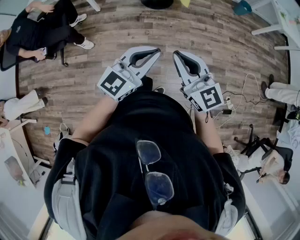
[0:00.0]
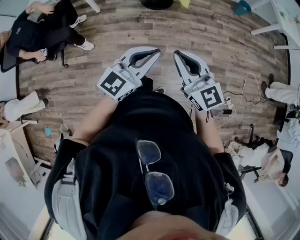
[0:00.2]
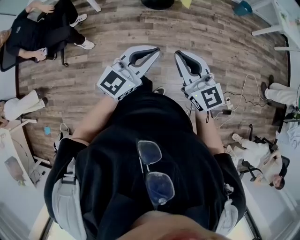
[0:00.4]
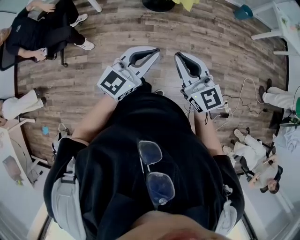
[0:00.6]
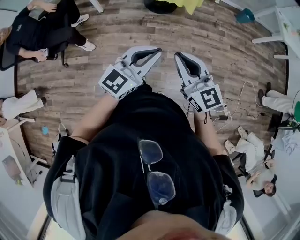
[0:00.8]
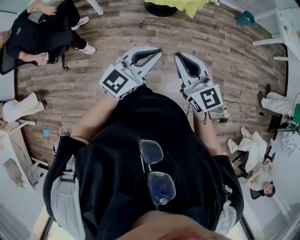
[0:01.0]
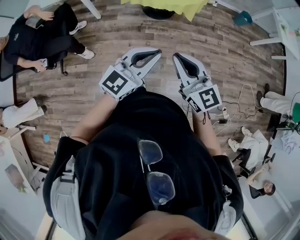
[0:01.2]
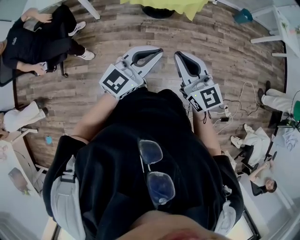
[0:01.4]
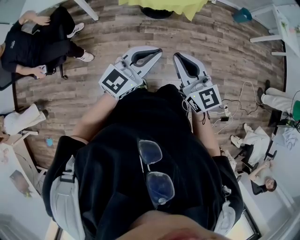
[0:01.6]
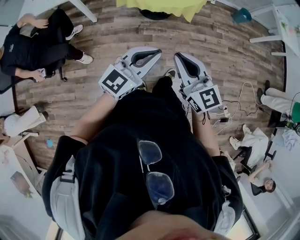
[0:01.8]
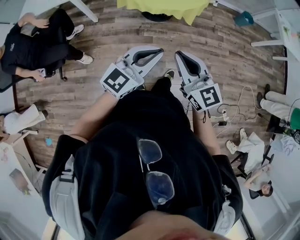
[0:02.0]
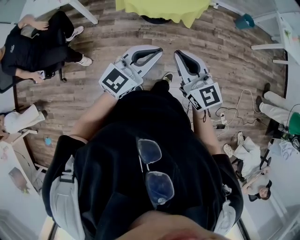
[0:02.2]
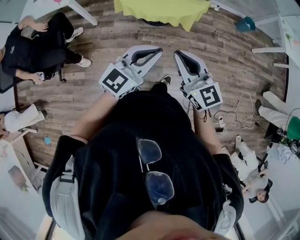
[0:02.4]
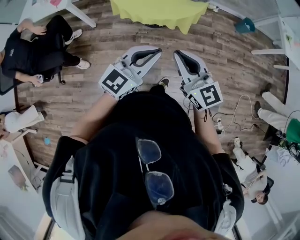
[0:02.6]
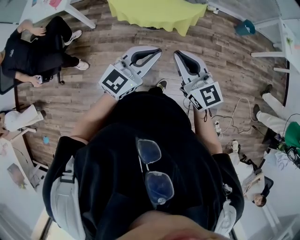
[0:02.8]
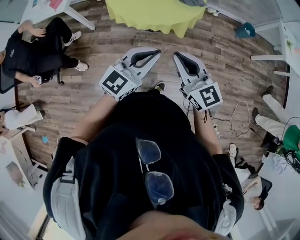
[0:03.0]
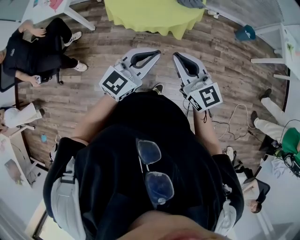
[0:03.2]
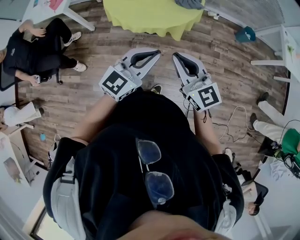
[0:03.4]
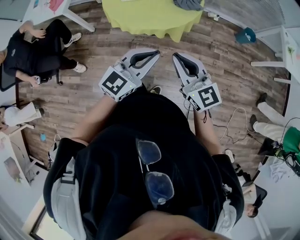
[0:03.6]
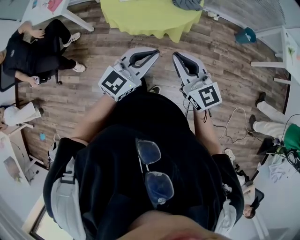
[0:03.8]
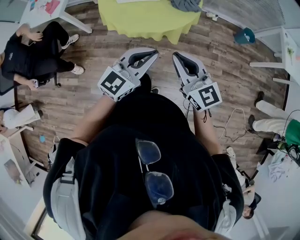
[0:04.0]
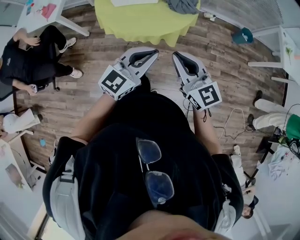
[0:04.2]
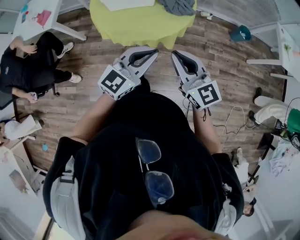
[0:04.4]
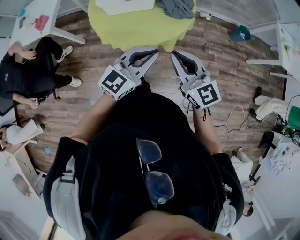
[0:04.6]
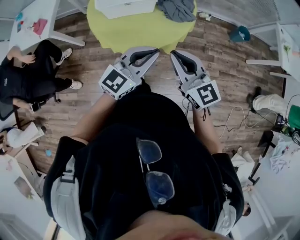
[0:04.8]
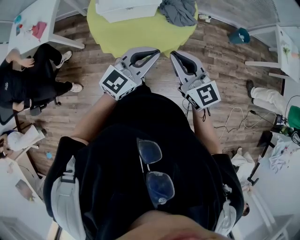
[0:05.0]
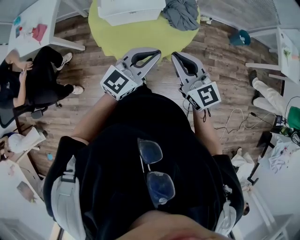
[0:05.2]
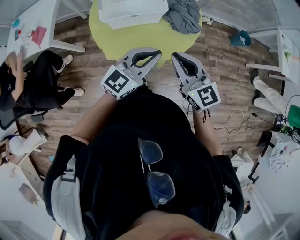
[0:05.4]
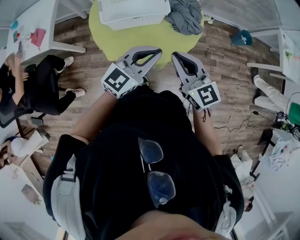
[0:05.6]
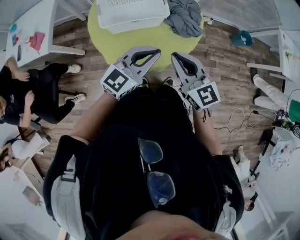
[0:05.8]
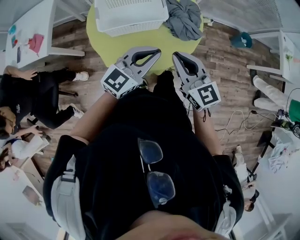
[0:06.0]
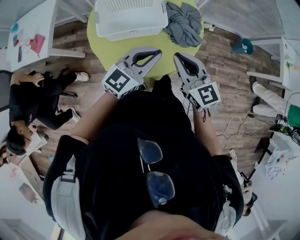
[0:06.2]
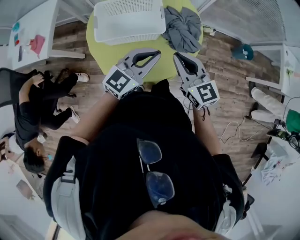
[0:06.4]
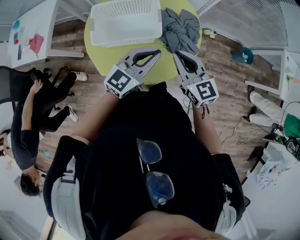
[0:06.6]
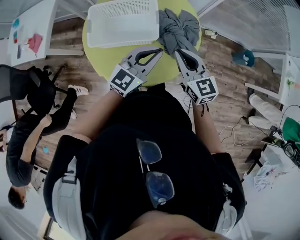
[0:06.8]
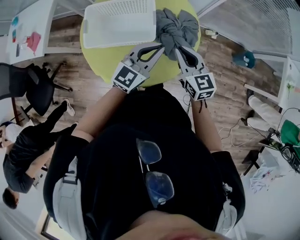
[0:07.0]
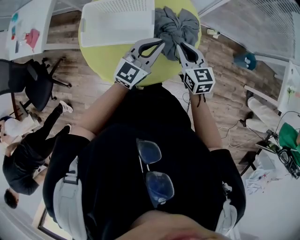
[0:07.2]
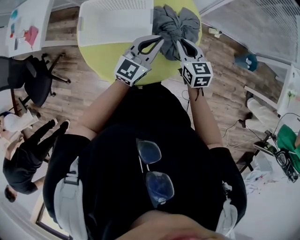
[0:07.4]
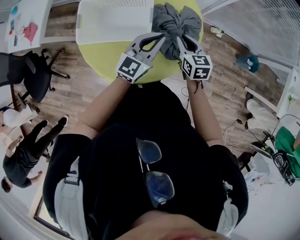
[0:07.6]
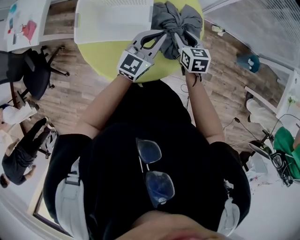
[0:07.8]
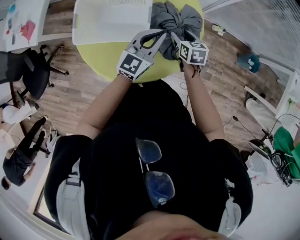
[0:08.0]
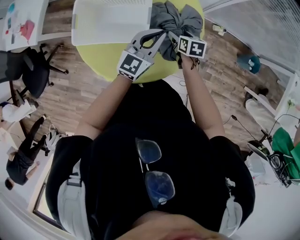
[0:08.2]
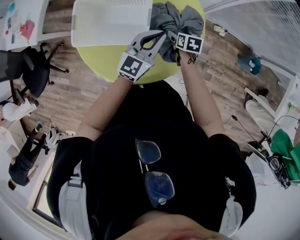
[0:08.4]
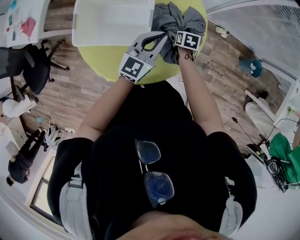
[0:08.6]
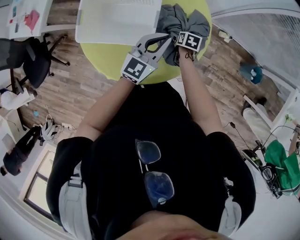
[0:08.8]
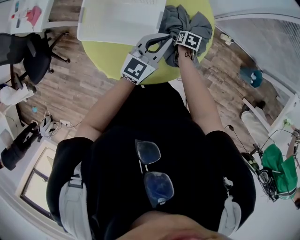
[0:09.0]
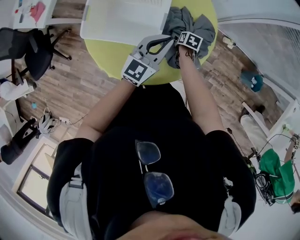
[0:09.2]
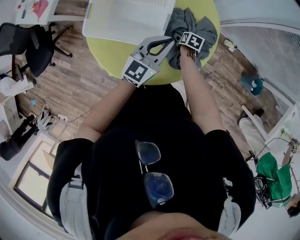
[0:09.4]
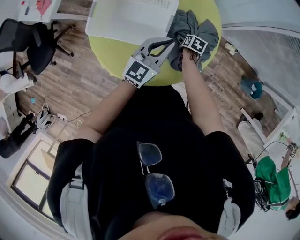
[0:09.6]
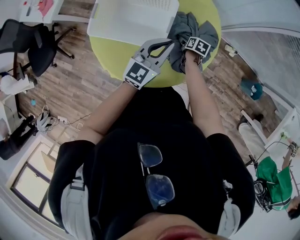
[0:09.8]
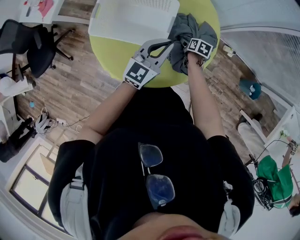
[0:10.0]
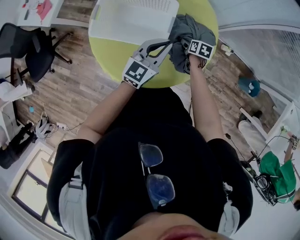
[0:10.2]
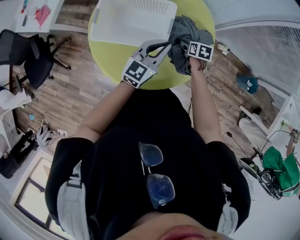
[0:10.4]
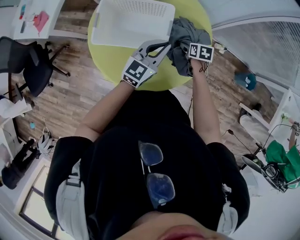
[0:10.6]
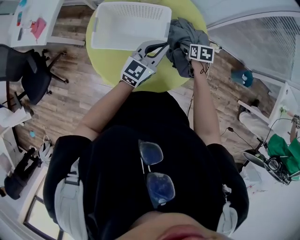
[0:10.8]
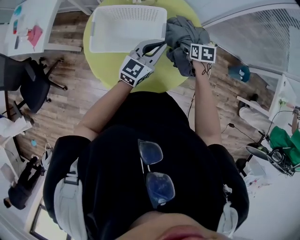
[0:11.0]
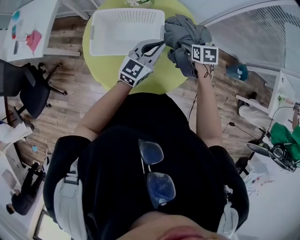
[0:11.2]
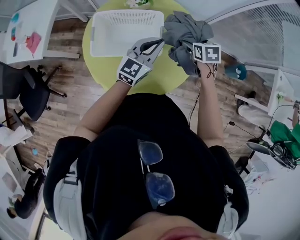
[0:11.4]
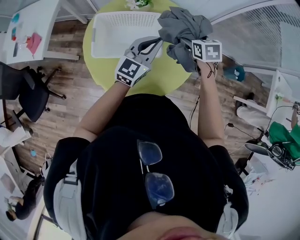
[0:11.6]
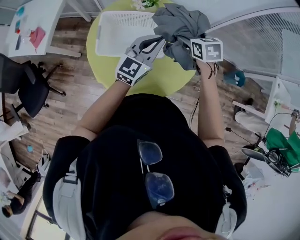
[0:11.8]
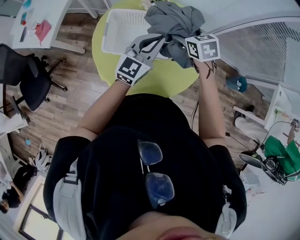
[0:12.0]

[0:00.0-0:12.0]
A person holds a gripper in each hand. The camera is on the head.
0:00.0 to 0:01.6: The two grippers go some 20 cm forward and to the left.
0:01.6 to 0:03.0: The grippers both shift forward and to the right by approximately 25 cm.
0:03.0 to 0:04.4: The two grippers go approximately 15 cm forward and to the right.
0:04.4 to 0:06.0: The right gripper heads forward and to the left, covering roughly 25 cm, while the left gripper heads forward, covering roughly 20 cm.
0:06.0 to 0:07.6: The right gripper travels forward, downward and to the right by some 35 cm, and rotates some 30 degrees. Meanwhile the left gripper is displaced forward and to the right by some 25 cm, and changes its angle by roughly 20 degrees.
0:07.6 to 0:09.0: The left gripper changes place by roughly 5 cm; the right gripper heads downward, covering about 25 cm, points its fingers some 30 degrees further downward, and opens its fingers.
0:09.0 to 0:10.4: The left gripper shifts by approximately 5 cm, while the right gripper shifts some 5 cm upward.
0:10.4 to 0:12.0: The right gripper travels upward and to the left by some 30 cm, and rotates approximately 30 degrees. The left gripper is displaced upward and to the left by about 15 cm.

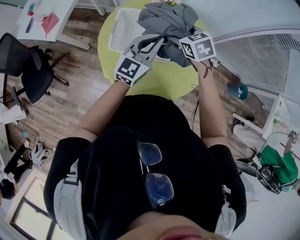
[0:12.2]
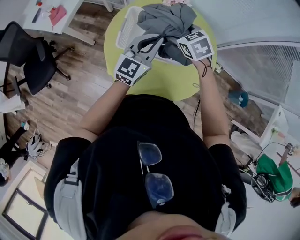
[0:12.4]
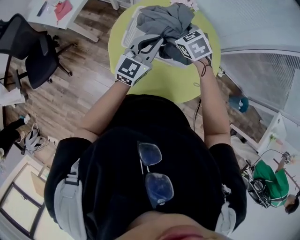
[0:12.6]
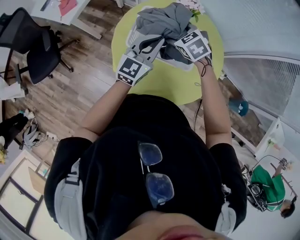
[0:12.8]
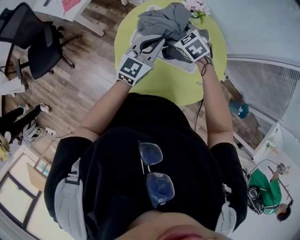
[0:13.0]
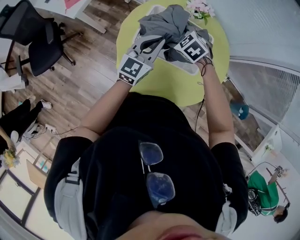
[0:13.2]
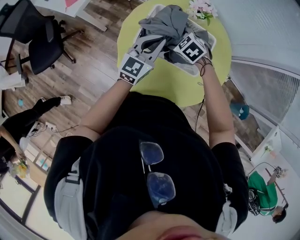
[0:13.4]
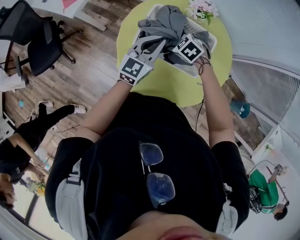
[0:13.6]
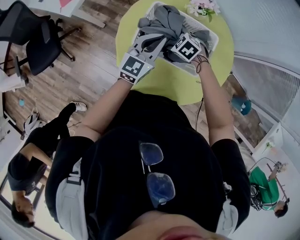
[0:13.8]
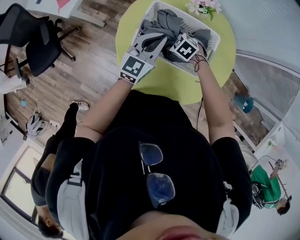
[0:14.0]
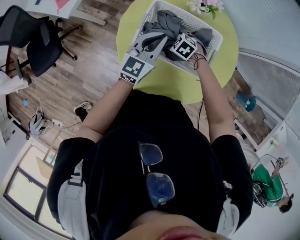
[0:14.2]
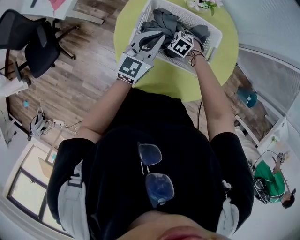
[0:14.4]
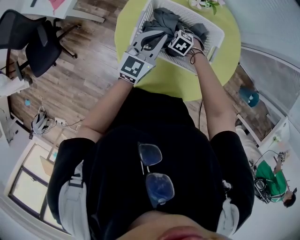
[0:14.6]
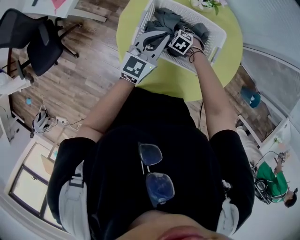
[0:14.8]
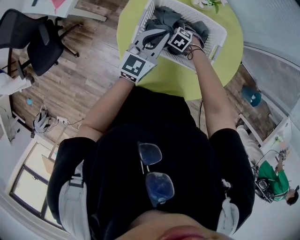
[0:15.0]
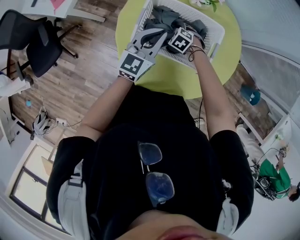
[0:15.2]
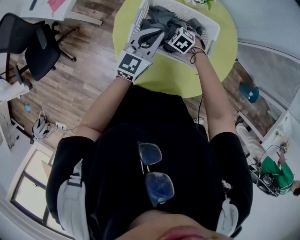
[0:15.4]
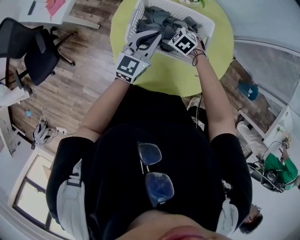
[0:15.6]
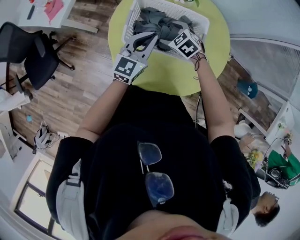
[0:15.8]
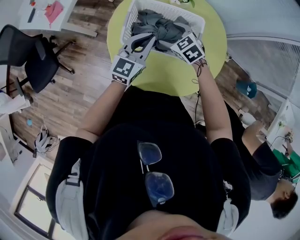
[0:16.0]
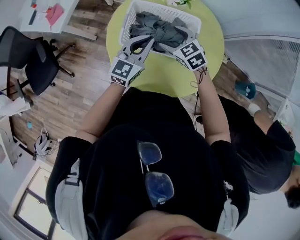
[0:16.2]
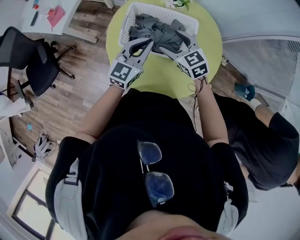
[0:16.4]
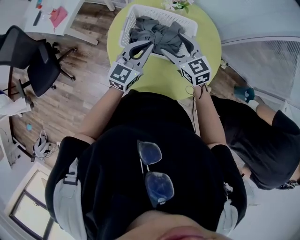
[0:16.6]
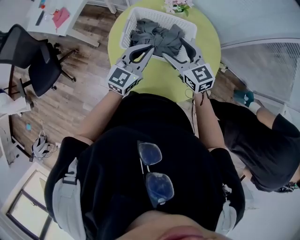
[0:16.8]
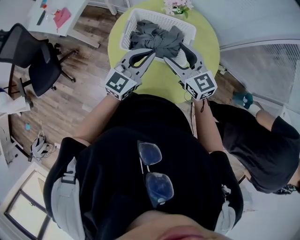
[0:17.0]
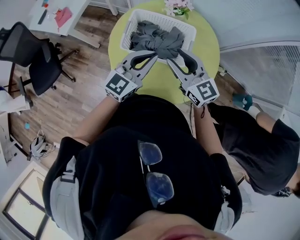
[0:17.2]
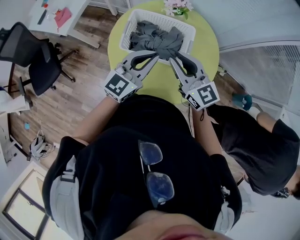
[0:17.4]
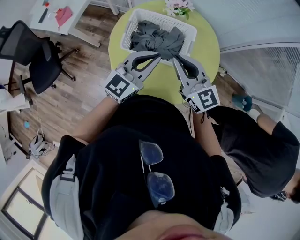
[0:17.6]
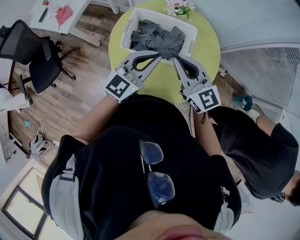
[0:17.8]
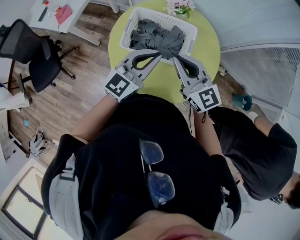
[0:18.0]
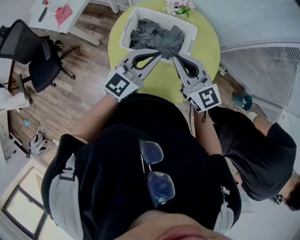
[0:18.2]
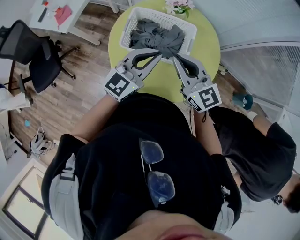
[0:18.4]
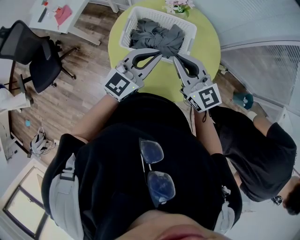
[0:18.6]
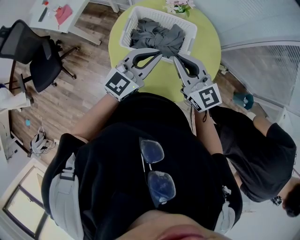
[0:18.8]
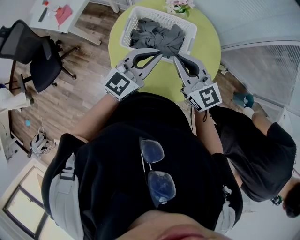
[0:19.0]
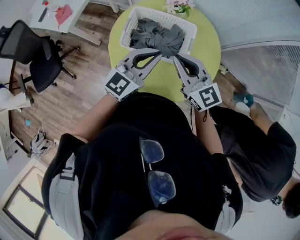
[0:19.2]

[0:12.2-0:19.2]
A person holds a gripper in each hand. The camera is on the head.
0:12.2 to 0:13.6: The left gripper goes about 15 cm to the left and downward. Meanwhile the right gripper shifts some 20 cm downward and to the left, and changes its angle by some 40 degrees.
0:13.6 to 0:15.0: The right gripper moves downward, some 15 cm.
0:15.0 to 0:16.4: The left gripper goes some 5 cm backward; the right gripper heads upward, covering approximately 25 cm, and tilts its fingers some 40 degrees upward.
0:16.4 to 0:17.8: The right gripper is displaced upward and backward by about 15 cm, changes its angle by some 30 degrees, and closes its fingers; the left gripper shifts some 10 cm upward and backward.
0:17.8 to 0:19.2: Both grippers stay put.

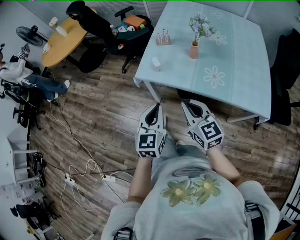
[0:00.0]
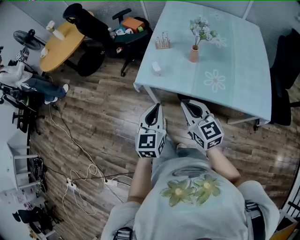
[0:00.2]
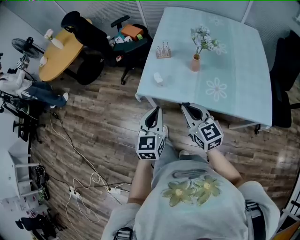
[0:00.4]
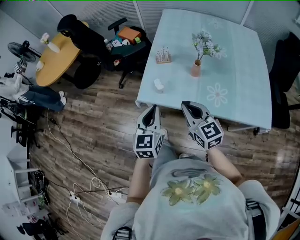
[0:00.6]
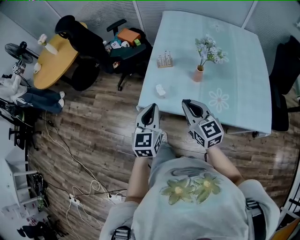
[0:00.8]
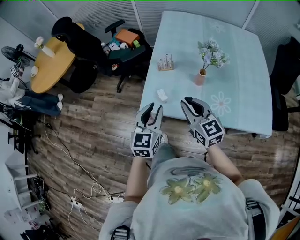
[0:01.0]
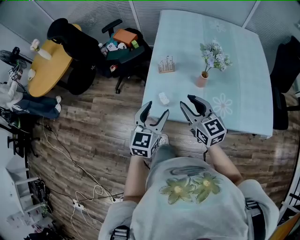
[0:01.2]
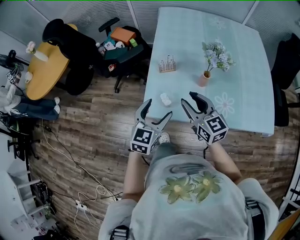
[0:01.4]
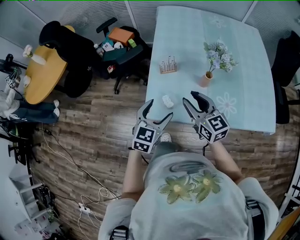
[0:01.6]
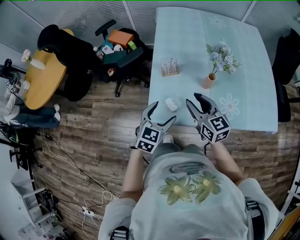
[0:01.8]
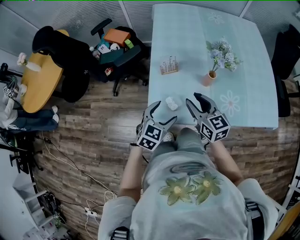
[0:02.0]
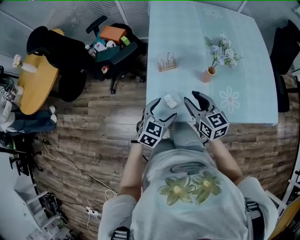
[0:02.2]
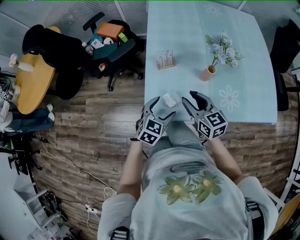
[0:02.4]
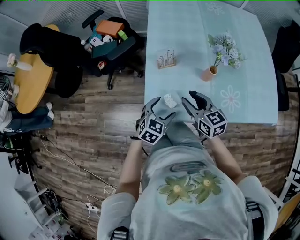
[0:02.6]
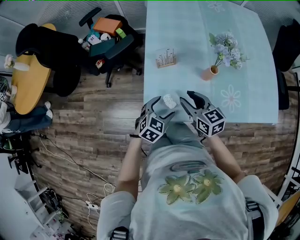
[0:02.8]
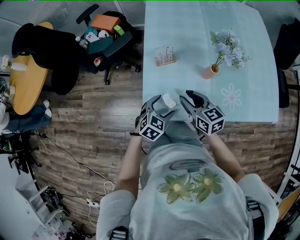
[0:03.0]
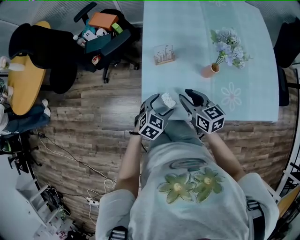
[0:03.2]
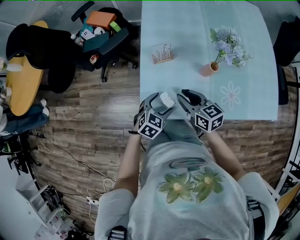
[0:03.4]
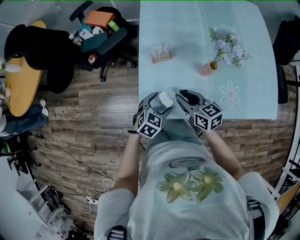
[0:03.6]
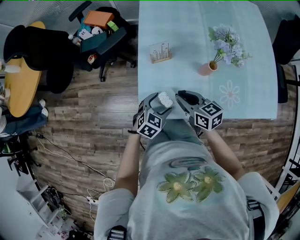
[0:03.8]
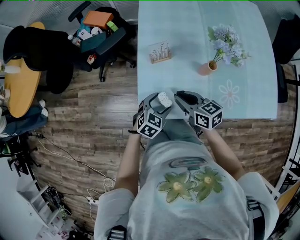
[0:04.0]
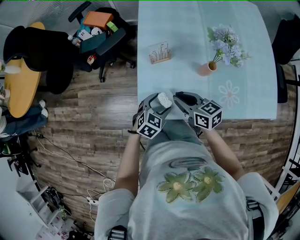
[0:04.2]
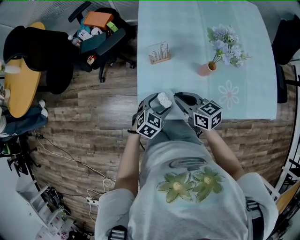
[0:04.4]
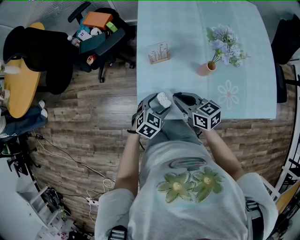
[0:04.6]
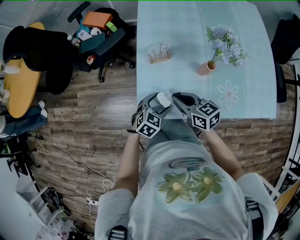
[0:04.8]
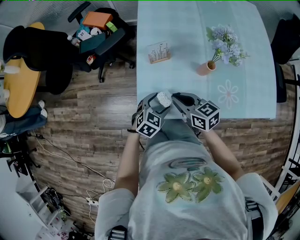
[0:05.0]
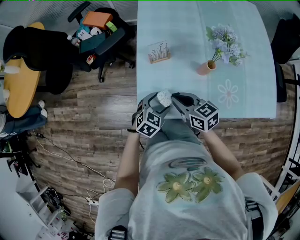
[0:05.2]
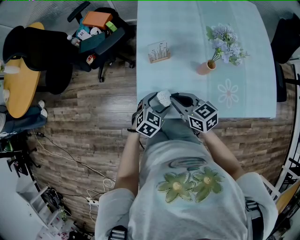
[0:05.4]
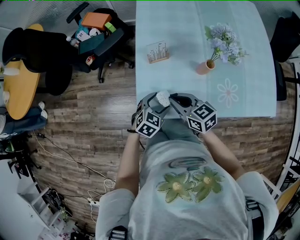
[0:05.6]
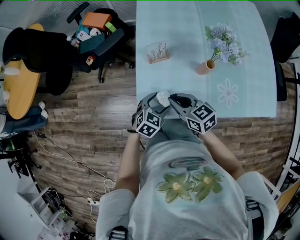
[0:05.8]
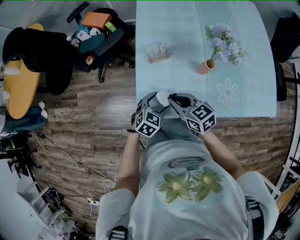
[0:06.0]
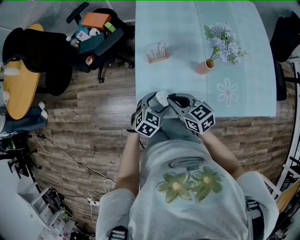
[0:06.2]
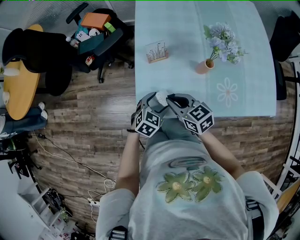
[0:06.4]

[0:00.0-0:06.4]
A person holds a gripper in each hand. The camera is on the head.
0:00.0 to 0:01.6: Both grippers travel together forward, roughly 25 cm. The right gripper opens up. Meanwhile the left gripper rotates roughly 30 degrees, and opens.
0:01.6 to 0:03.2: The two grippers go approximately 15 cm downward. The left gripper rotates about 30 degrees.
0:03.2 to 0:04.8: The right gripper closes its fingers.
0:04.8 to 0:06.4: The grippers stay close to where they were, moving slightly.
